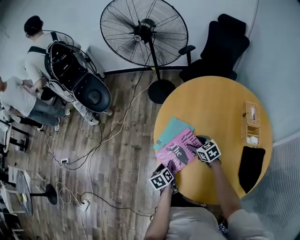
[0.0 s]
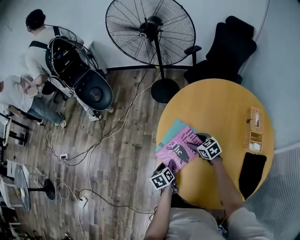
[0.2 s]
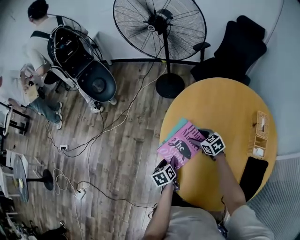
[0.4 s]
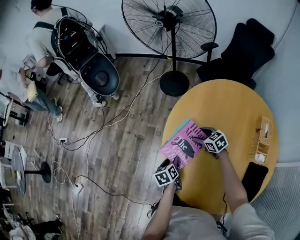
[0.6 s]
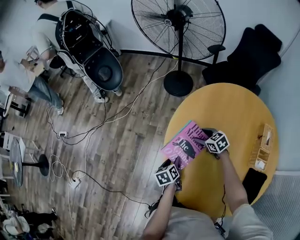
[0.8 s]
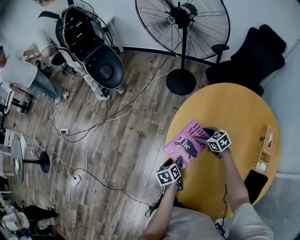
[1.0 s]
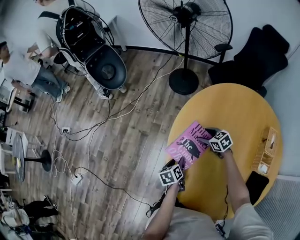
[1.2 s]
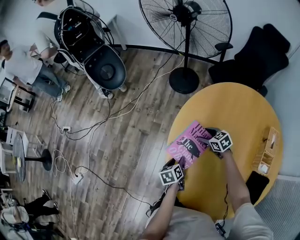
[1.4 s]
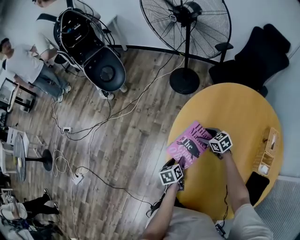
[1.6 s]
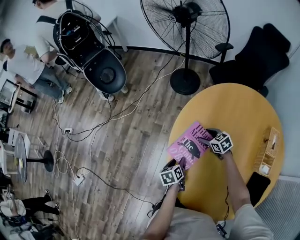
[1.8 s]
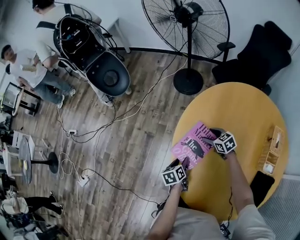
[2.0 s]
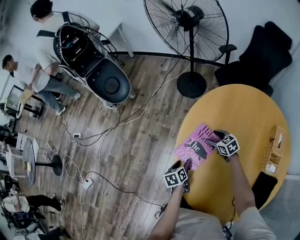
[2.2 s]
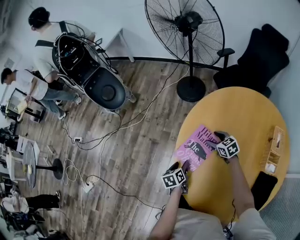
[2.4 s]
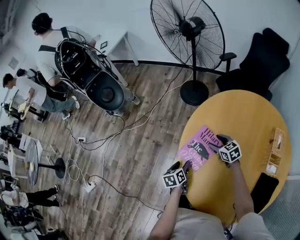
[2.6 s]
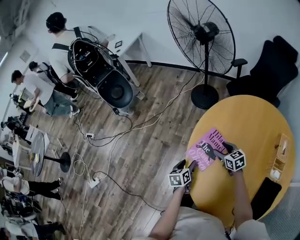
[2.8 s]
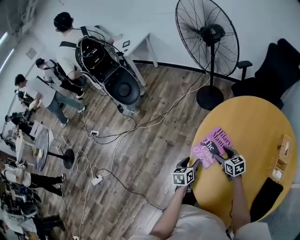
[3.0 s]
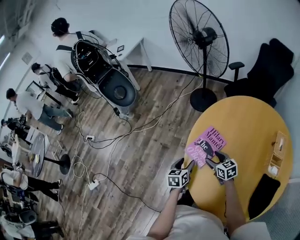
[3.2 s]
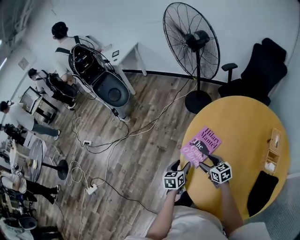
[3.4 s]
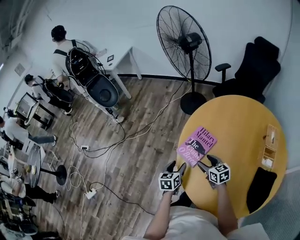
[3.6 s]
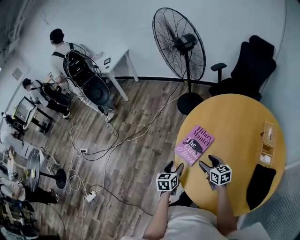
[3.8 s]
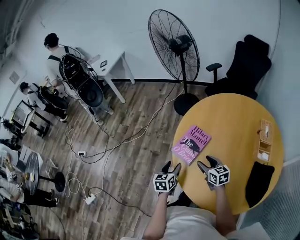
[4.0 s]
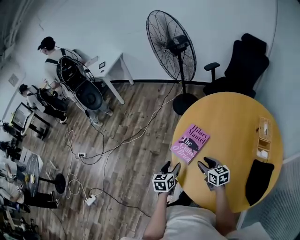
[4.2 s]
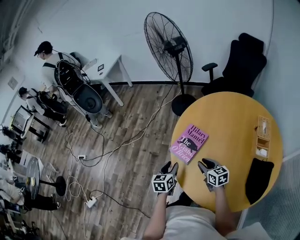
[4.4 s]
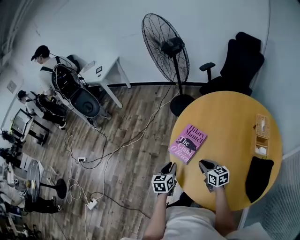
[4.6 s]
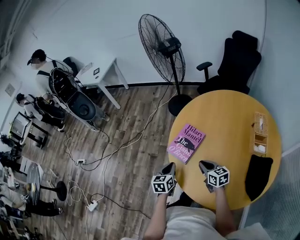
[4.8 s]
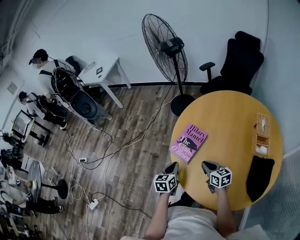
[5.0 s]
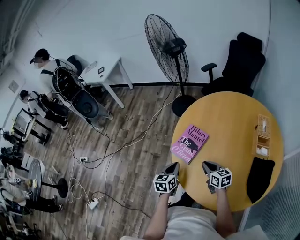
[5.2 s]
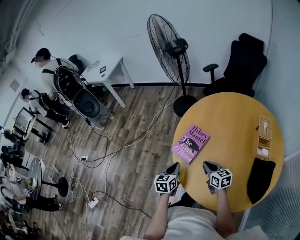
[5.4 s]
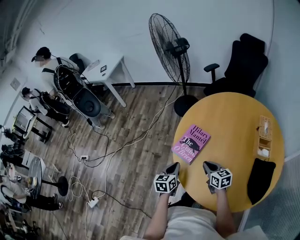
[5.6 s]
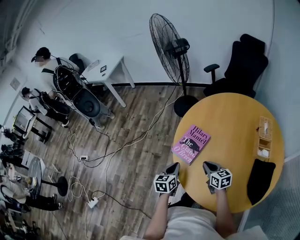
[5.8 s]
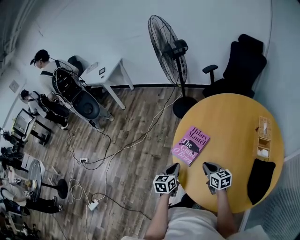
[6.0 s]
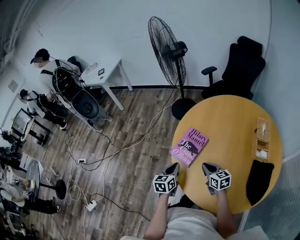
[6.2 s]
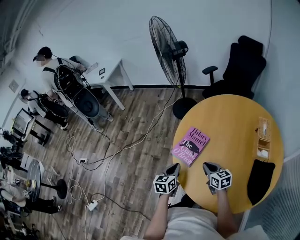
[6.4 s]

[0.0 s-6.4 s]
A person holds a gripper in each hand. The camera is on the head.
0.0 to 1.6 s: The right gripper goes some 15 cm forward and downward, while the left gripper heads forward, covering about 5 cm.
1.6 to 3.2 s: The right gripper heads backward, upward and to the left, covering about 15 cm. Meanwhile the left gripper travels upward by about 10 cm, and changes its angle by roughly 20 degrees.
3.2 to 4.8 s: The left gripper goes roughly 5 cm backward, and closes up, while the right gripper is displaced backward by approximately 10 cm, and closes its fingers.
4.8 to 6.4 s: The grippers stay close to where they were, moving slightly.

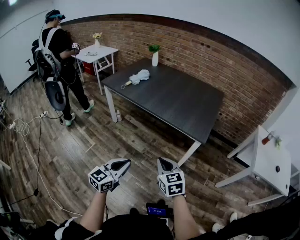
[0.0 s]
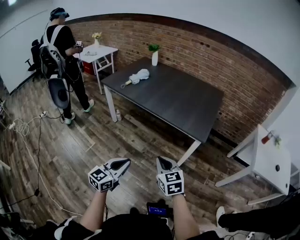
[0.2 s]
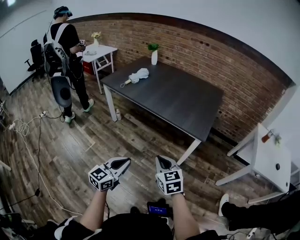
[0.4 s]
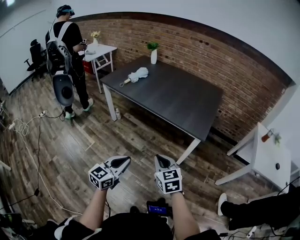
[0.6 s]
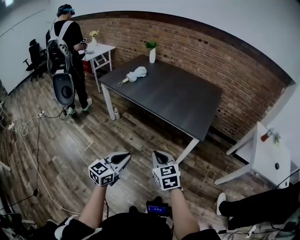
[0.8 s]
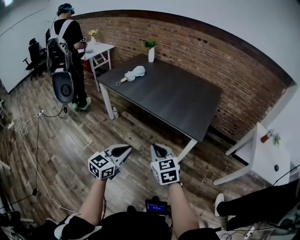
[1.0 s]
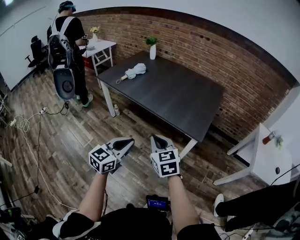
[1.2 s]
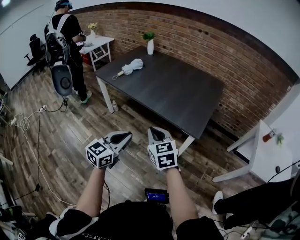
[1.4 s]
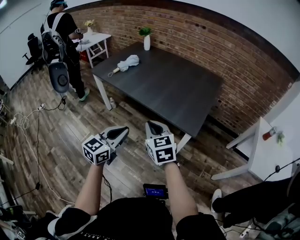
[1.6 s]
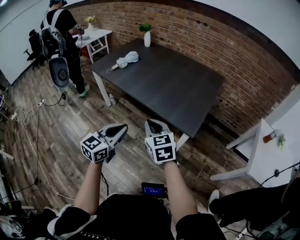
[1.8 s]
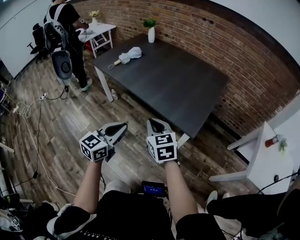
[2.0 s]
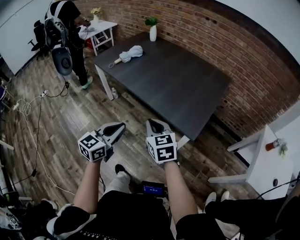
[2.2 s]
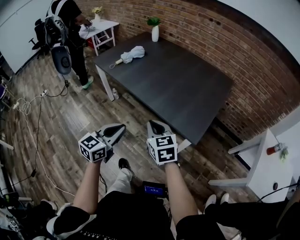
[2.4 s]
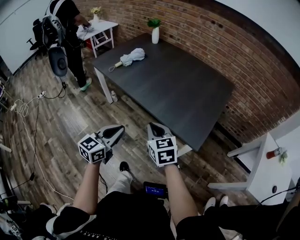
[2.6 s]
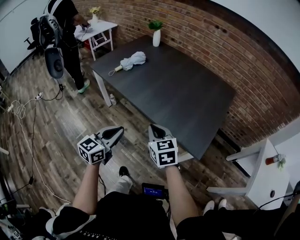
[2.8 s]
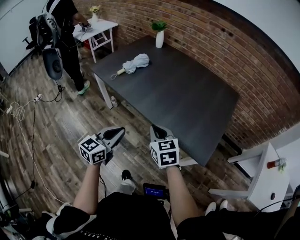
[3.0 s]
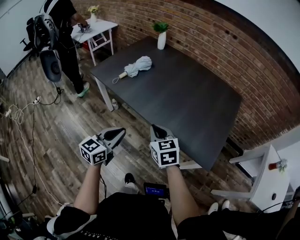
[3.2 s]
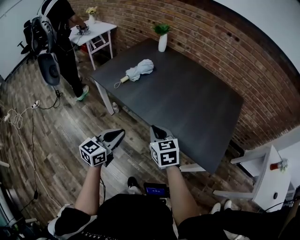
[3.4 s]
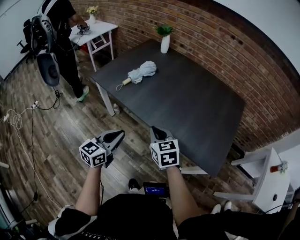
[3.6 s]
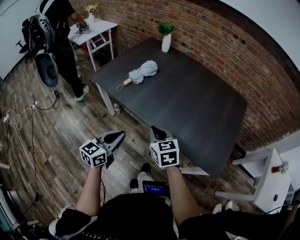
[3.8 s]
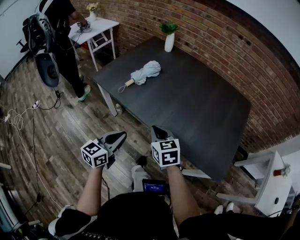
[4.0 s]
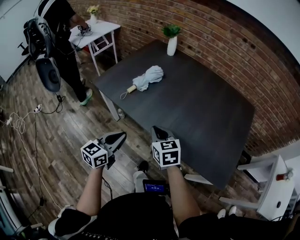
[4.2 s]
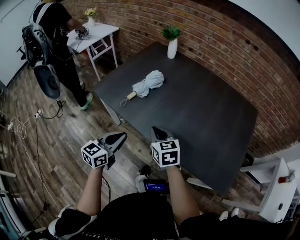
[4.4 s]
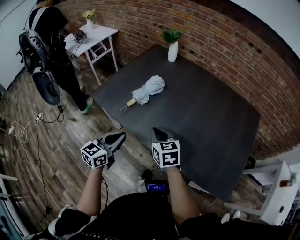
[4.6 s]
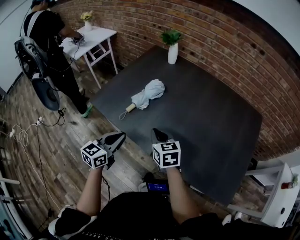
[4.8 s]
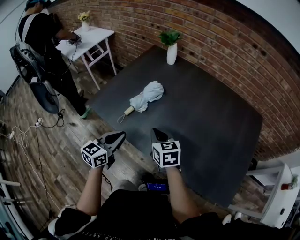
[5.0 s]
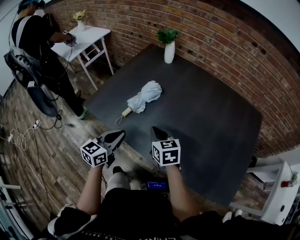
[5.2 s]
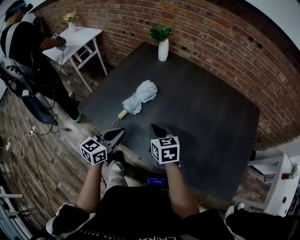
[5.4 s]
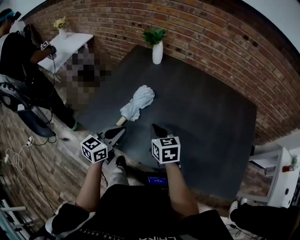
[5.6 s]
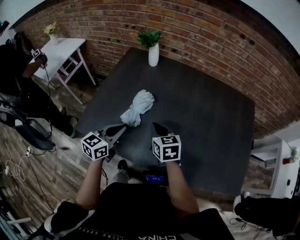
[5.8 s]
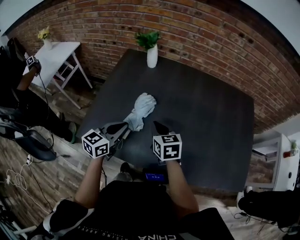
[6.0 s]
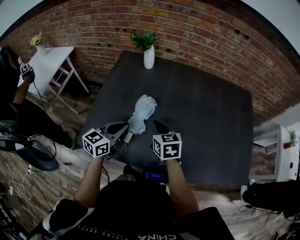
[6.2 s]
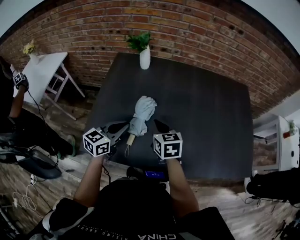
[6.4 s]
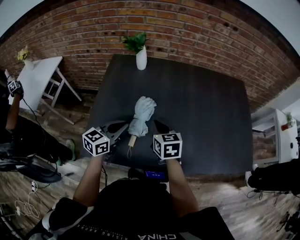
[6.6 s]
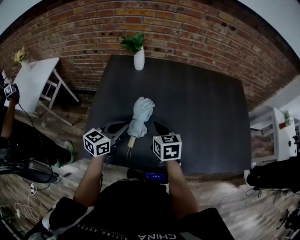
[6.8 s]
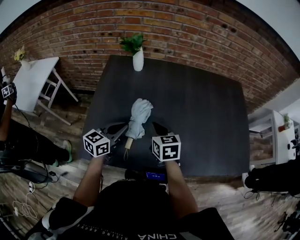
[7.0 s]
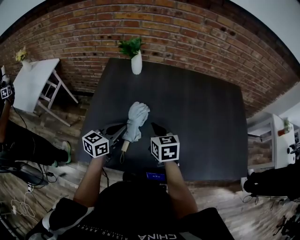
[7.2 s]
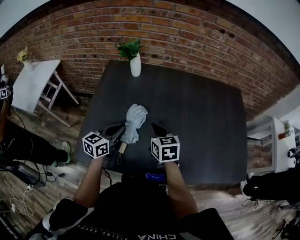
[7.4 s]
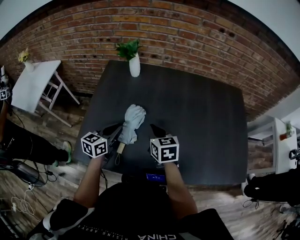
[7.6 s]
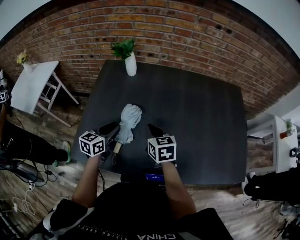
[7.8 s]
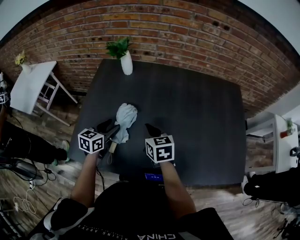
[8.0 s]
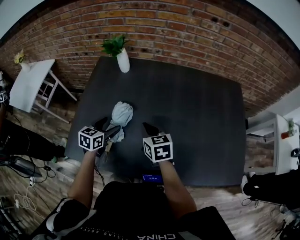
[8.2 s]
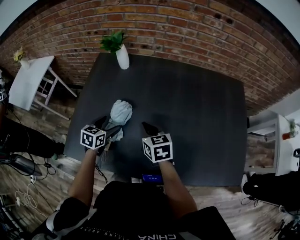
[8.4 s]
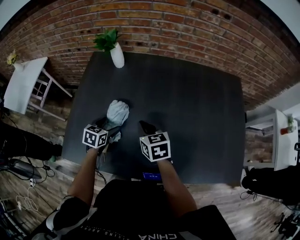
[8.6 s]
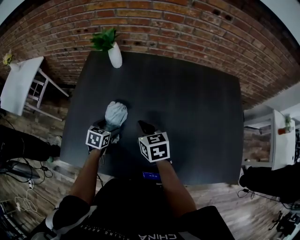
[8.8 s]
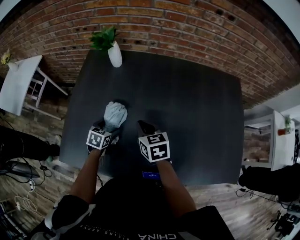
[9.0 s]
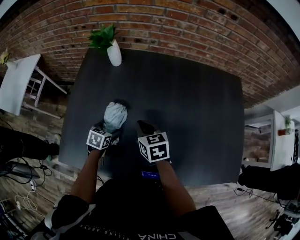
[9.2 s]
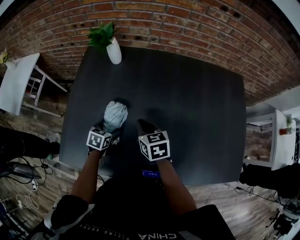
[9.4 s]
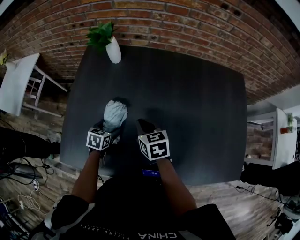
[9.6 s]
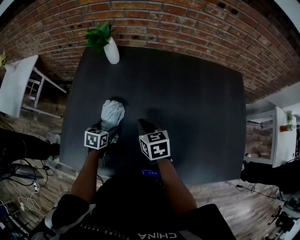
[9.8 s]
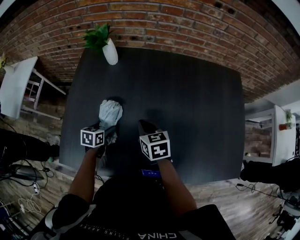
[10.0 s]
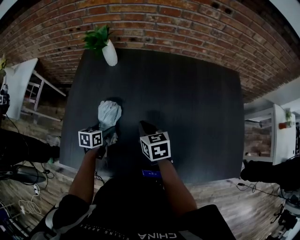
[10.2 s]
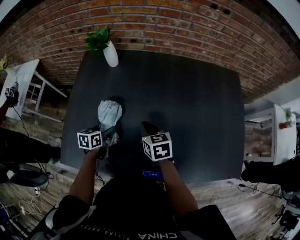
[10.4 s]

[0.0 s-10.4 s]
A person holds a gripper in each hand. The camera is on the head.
0.0 to 1.4 s: The right gripper heads forward and upward, covering some 15 cm; the left gripper goes some 15 cm forward, to the right and upward.
1.4 to 3.0 s: The two grippers go about 20 cm forward.
3.0 to 4.4 s: Both grippers move forward and to the left, some 30 cm.
4.4 to 6.0 s: The grippers both shift forward by some 30 cm. The right gripper changes its angle by roughly 20 degrees; the left gripper rotates approximately 20 degrees.
6.0 to 7.4 s: The left gripper travels forward by approximately 5 cm.
7.4 to 9.0 s: The right gripper moves forward, roughly 5 cm. The left gripper is displaced downward by some 15 cm, tips its fingers downward by some 40 degrees, and opens its fingers.
9.0 to 10.4 s: The left gripper changes its angle by some 20 degrees.

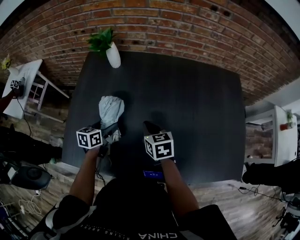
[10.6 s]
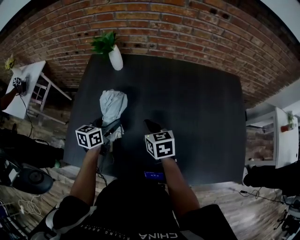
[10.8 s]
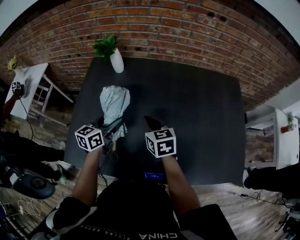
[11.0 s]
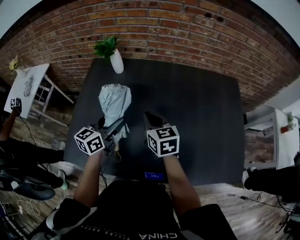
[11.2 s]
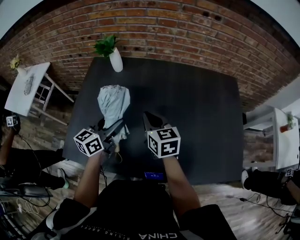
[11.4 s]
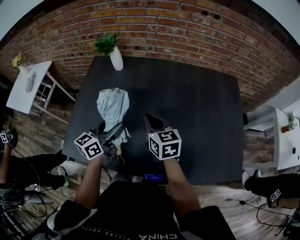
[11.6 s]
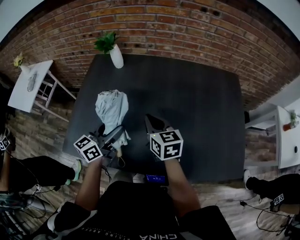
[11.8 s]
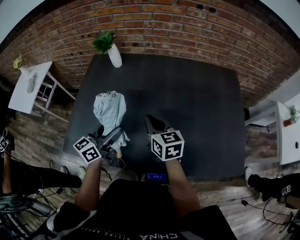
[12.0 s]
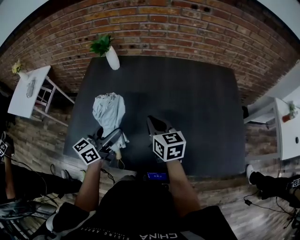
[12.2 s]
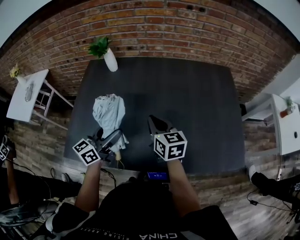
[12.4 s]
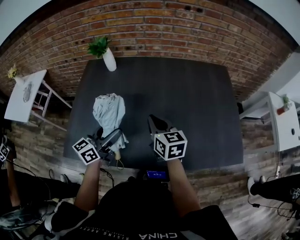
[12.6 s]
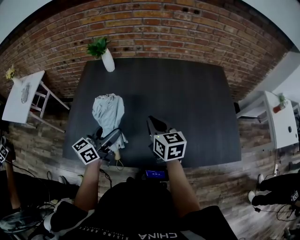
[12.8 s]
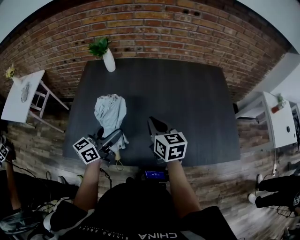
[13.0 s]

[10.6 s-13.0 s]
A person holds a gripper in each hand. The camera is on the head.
10.6 to 11.8 s: The right gripper is displaced upward by approximately 10 cm, while the left gripper goes about 20 cm upward, to the right and backward, and tilts its fingers approximately 30 degrees upward.
11.8 to 13.0 s: The two grippers go roughly 5 cm backward.

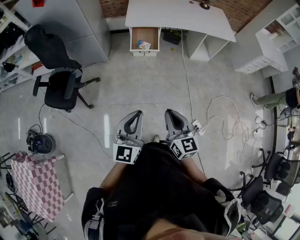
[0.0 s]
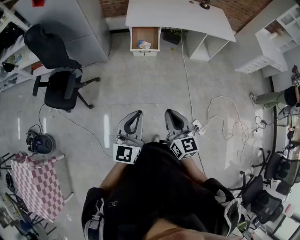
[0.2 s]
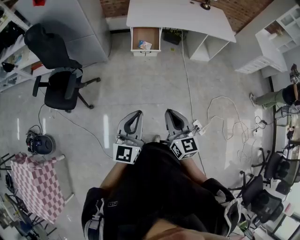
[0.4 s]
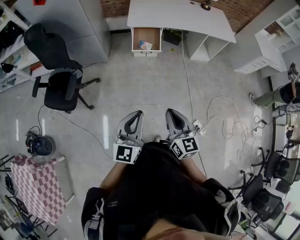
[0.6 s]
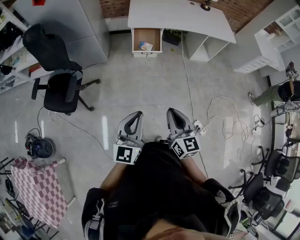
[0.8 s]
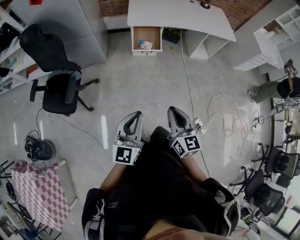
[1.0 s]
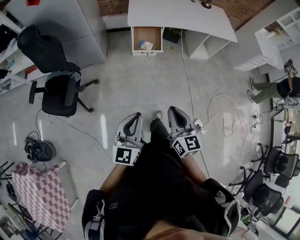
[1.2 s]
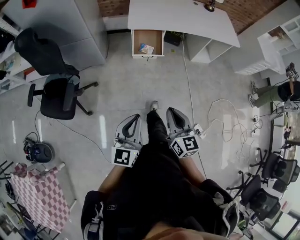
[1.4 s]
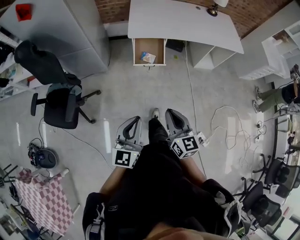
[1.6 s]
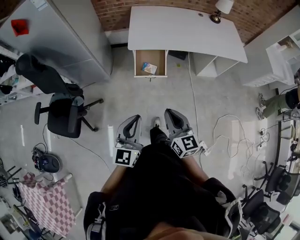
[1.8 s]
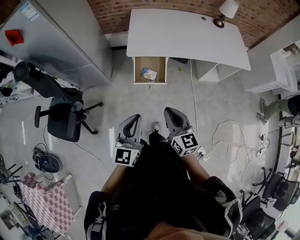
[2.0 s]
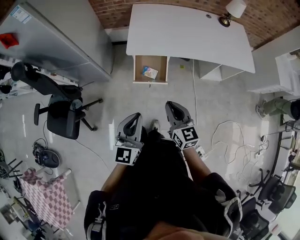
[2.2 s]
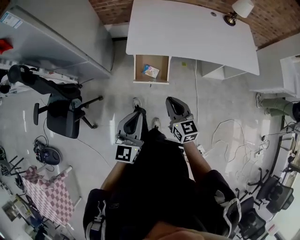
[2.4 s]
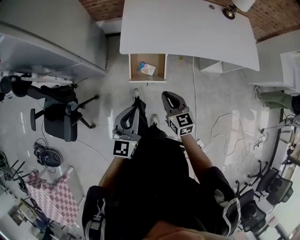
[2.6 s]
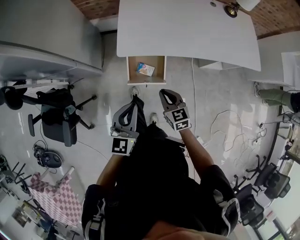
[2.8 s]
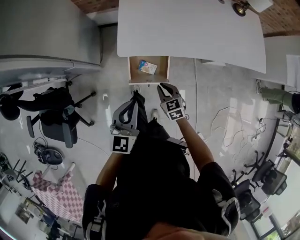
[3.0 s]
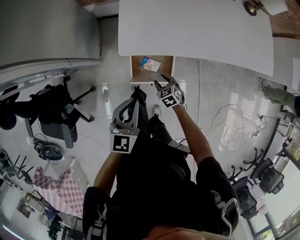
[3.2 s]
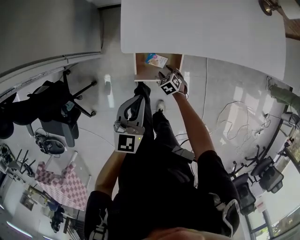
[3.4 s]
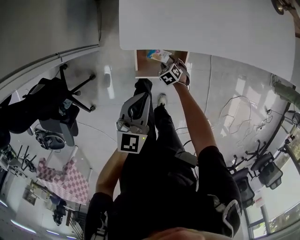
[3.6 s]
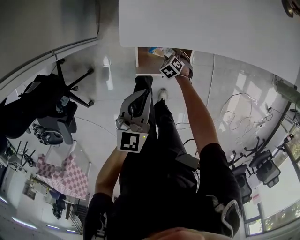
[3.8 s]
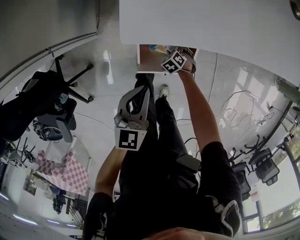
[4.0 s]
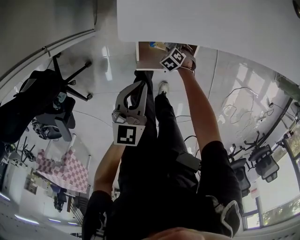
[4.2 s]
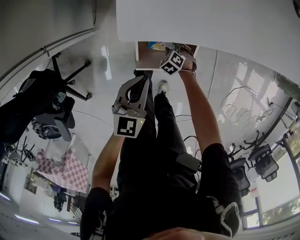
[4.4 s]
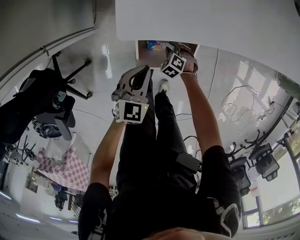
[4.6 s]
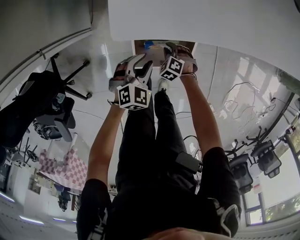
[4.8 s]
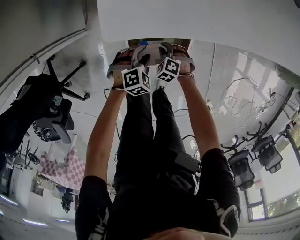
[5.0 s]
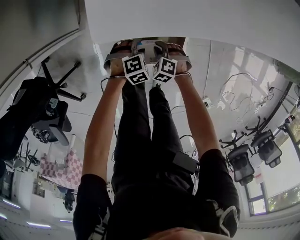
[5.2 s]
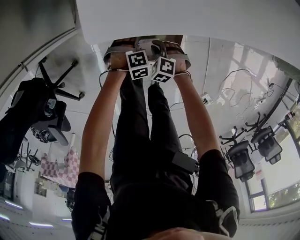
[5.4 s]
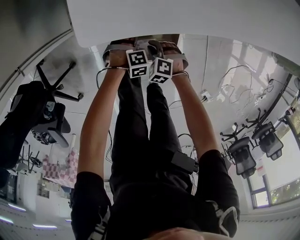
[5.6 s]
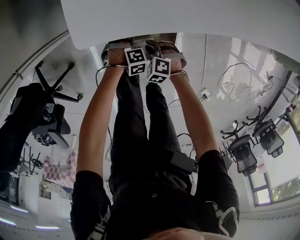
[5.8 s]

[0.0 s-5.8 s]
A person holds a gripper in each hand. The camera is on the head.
0.0 to 1.4 s: The two grippers go about 15 cm forward and to the left.
1.4 to 2.8 s: The two grippers travel together, forward, roughly 50 cm. The right gripper turns by some 30 degrees.
2.8 to 4.4 s: The left gripper travels downward by approximately 30 cm, and rotates approximately 20 degrees; the right gripper heads downward, covering about 50 cm, angles its fingers downward, by roughly 50 degrees, and opens.
4.4 to 5.8 s: The left gripper travels downward by approximately 30 cm, tilts its fingers approximately 50 degrees downward, and opens, while the right gripper shifts by about 5 cm, and closes.
